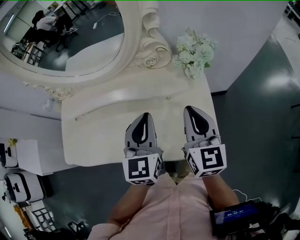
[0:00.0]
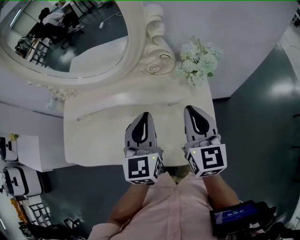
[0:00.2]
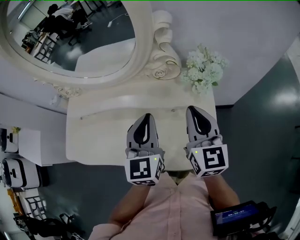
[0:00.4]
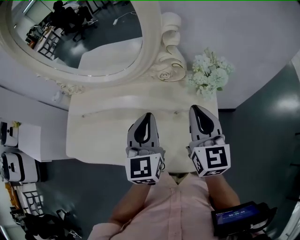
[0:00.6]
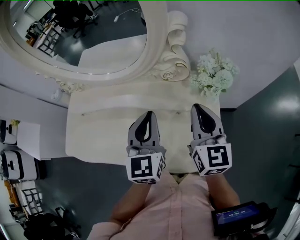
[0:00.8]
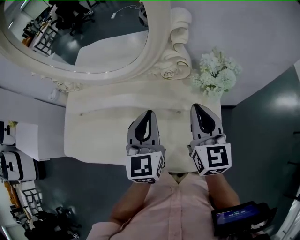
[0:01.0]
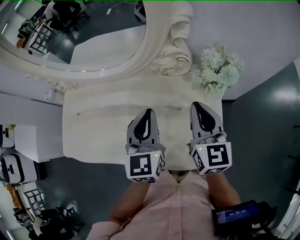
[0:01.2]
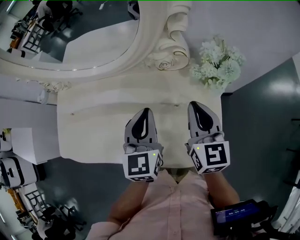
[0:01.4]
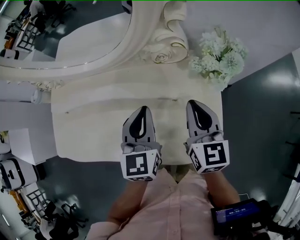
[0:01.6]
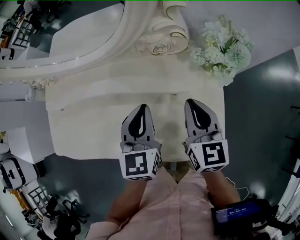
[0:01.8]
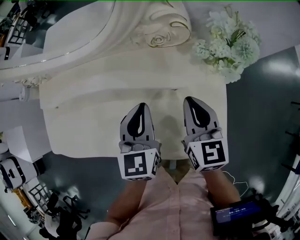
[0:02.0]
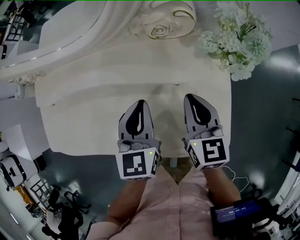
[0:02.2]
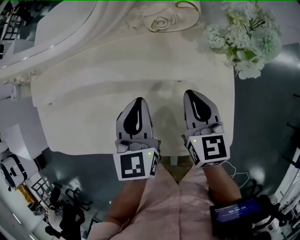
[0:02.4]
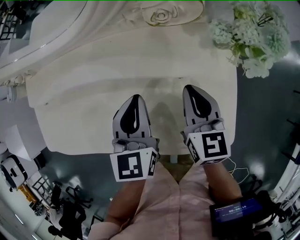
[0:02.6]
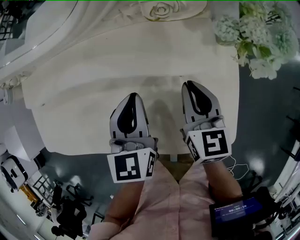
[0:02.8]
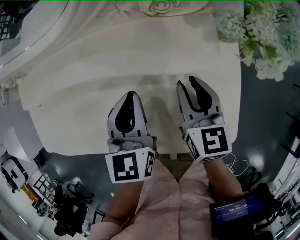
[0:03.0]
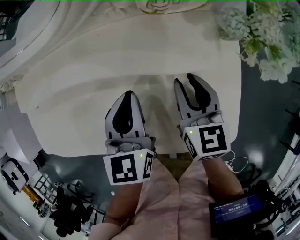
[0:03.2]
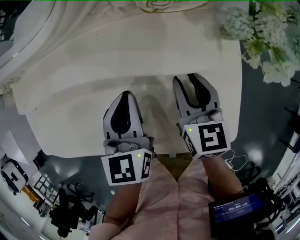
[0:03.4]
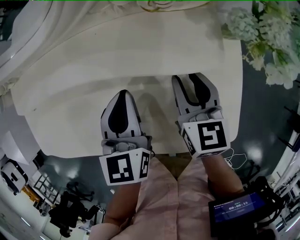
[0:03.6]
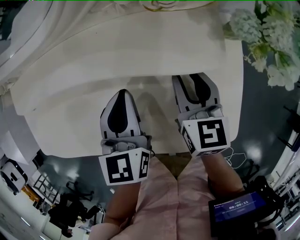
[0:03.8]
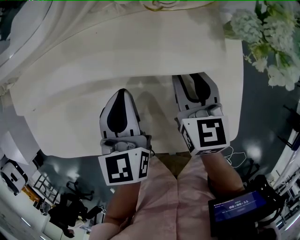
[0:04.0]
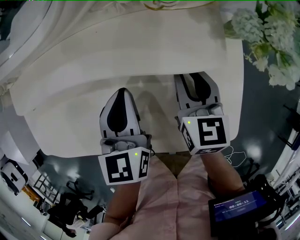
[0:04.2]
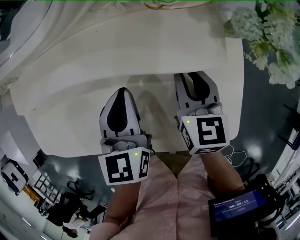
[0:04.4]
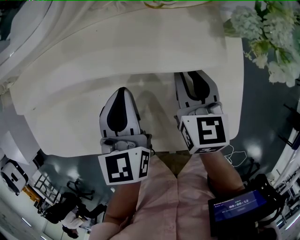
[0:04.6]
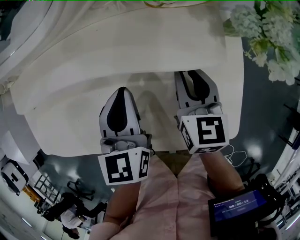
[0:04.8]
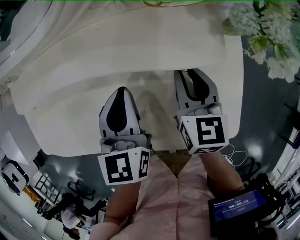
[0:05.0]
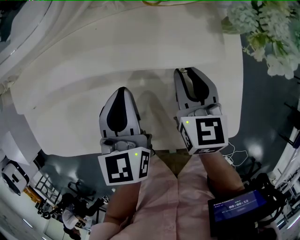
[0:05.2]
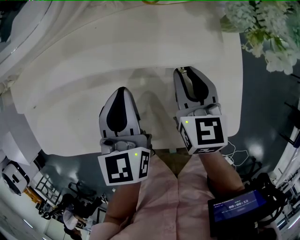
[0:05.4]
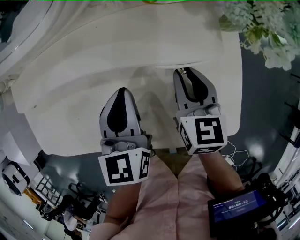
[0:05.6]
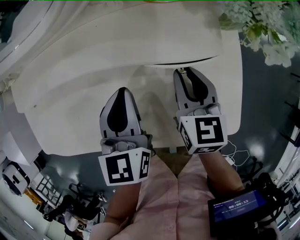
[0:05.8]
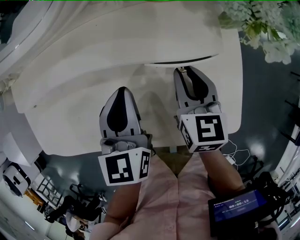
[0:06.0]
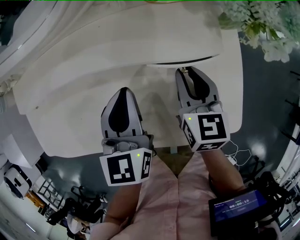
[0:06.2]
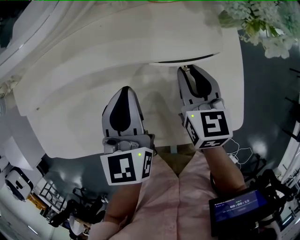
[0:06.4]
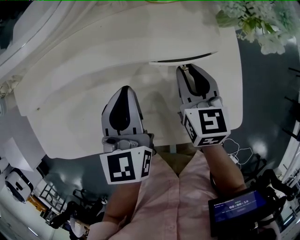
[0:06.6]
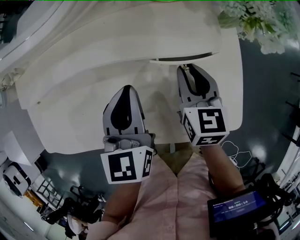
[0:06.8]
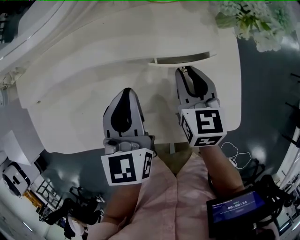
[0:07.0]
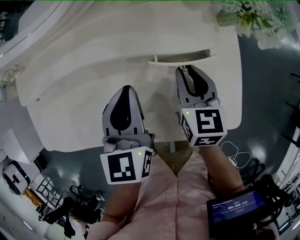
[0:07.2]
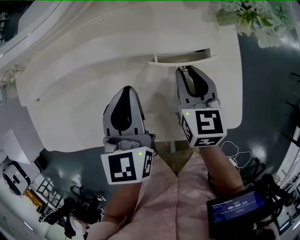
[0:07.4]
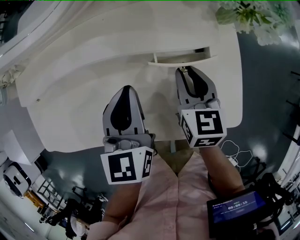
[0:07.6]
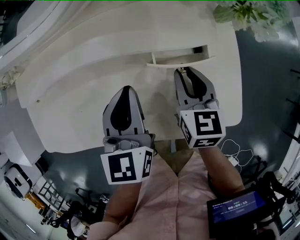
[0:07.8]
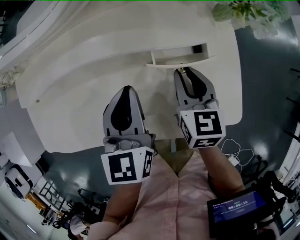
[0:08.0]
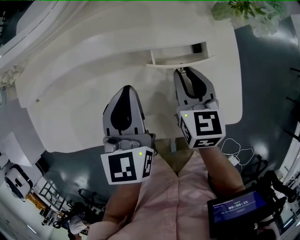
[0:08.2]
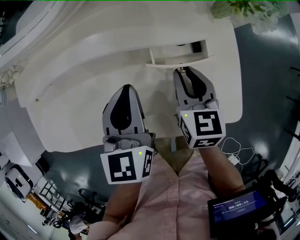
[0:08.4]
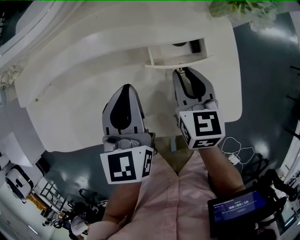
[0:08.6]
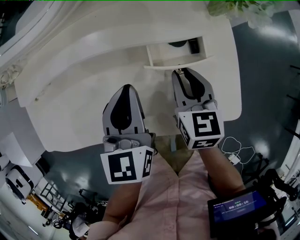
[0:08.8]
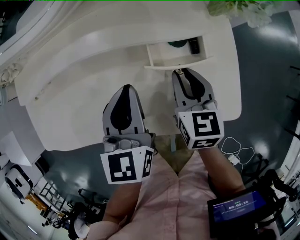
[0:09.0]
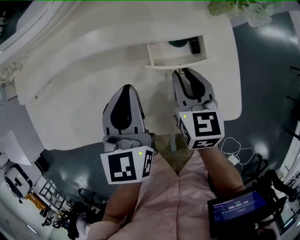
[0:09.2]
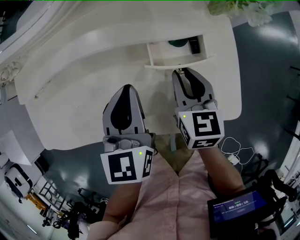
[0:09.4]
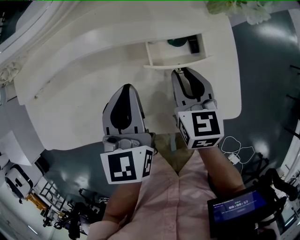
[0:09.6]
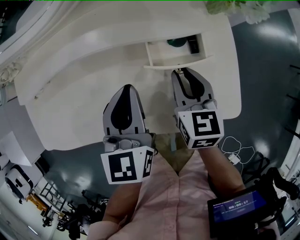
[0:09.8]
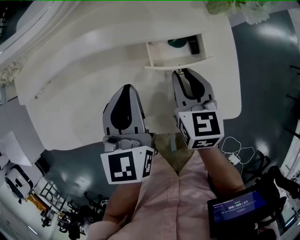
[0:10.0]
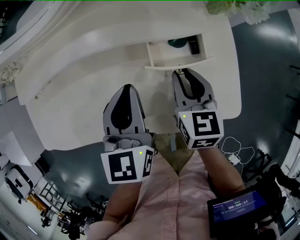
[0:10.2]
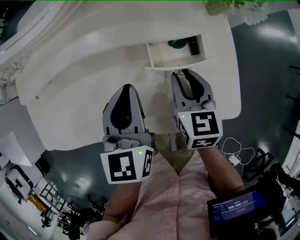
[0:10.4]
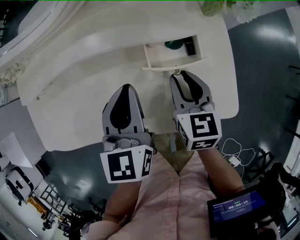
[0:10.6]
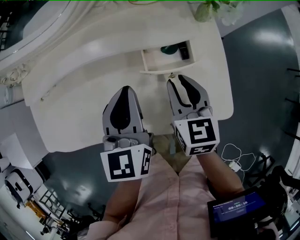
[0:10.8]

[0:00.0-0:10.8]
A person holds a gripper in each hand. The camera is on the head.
0:00.0 to 0:01.6: The grippers both shift forward and downward by some 10 cm.
0:01.6 to 0:03.0: Both grippers move downward, approximately 10 cm. The right gripper opens.
0:03.0 to 0:09.2: There are only small adjustments of the grippers.
0:09.2 to 0:10.8: There are only small adjustments of the grippers.

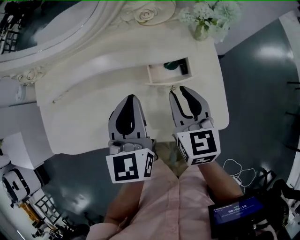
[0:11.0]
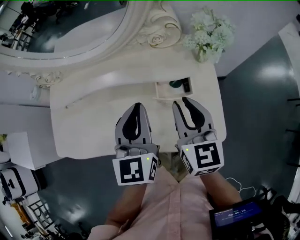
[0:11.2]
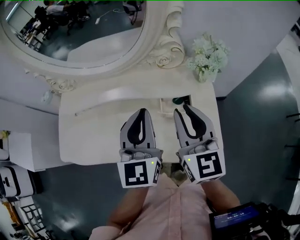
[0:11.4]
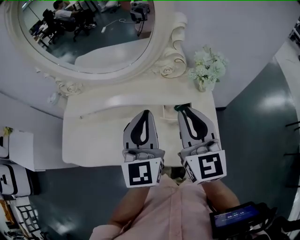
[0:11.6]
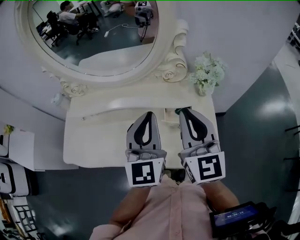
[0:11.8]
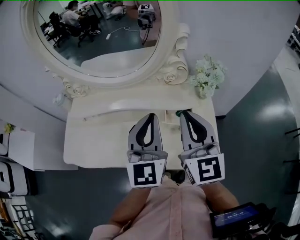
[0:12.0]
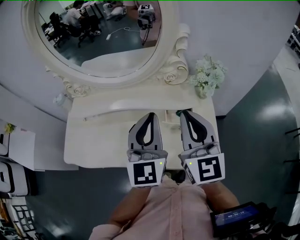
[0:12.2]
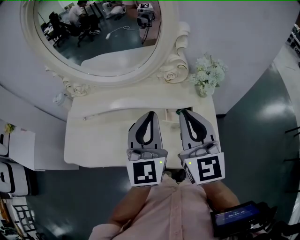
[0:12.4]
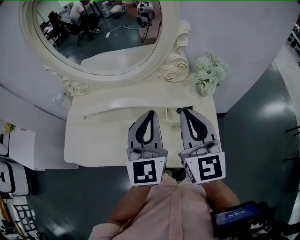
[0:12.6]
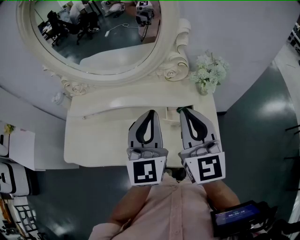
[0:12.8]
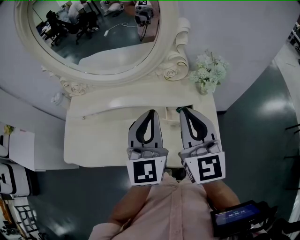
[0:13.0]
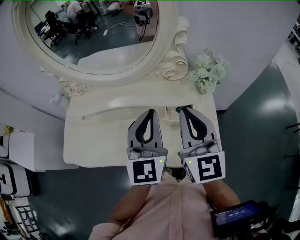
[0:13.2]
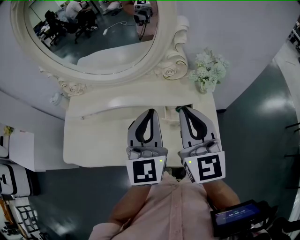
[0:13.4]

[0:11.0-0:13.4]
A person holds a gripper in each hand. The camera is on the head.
0:11.0 to 0:12.2: The grippers both shift upward by about 15 cm. The right gripper changes its angle by approximately 30 degrees; the left gripper turns by roughly 20 degrees.
0:12.2 to 0:13.4: Neither gripper changes place.

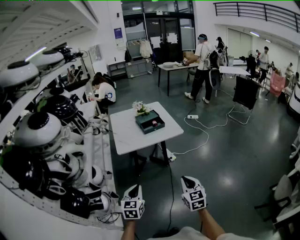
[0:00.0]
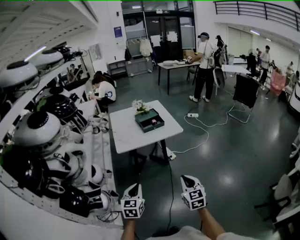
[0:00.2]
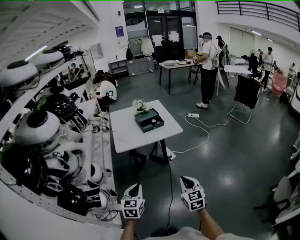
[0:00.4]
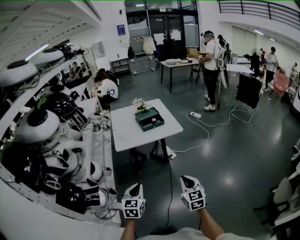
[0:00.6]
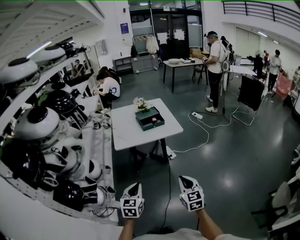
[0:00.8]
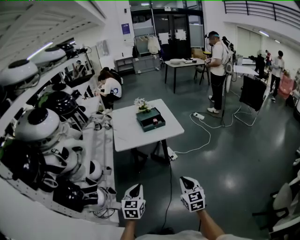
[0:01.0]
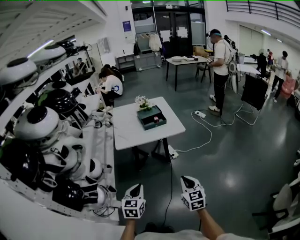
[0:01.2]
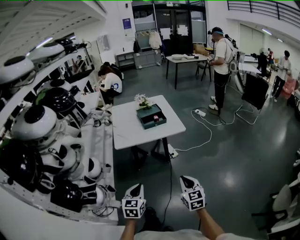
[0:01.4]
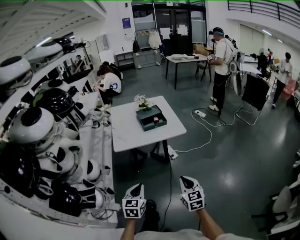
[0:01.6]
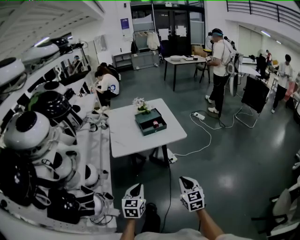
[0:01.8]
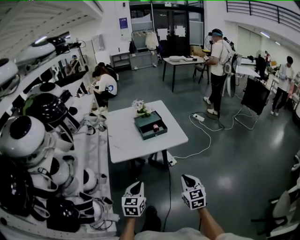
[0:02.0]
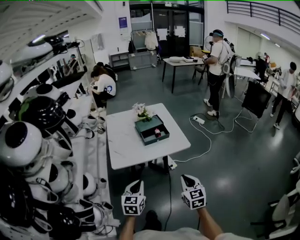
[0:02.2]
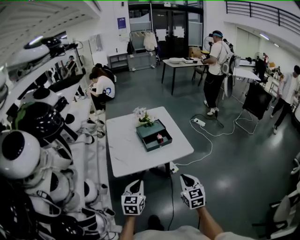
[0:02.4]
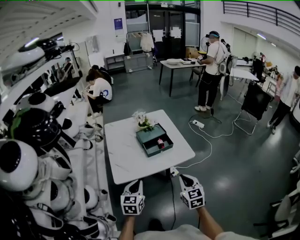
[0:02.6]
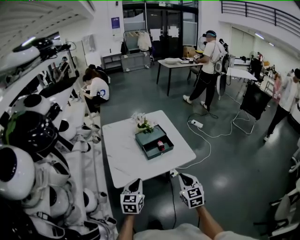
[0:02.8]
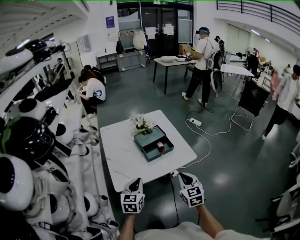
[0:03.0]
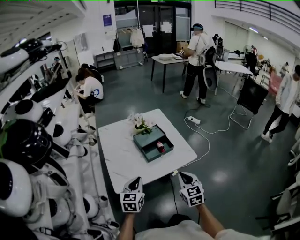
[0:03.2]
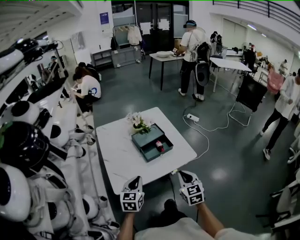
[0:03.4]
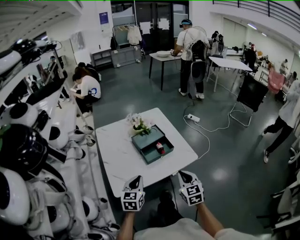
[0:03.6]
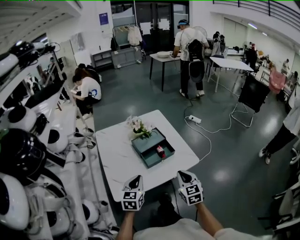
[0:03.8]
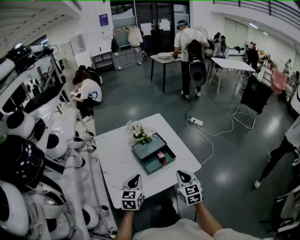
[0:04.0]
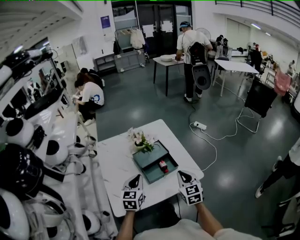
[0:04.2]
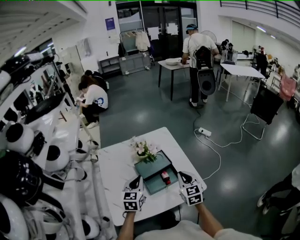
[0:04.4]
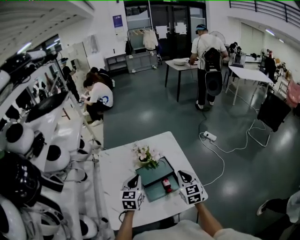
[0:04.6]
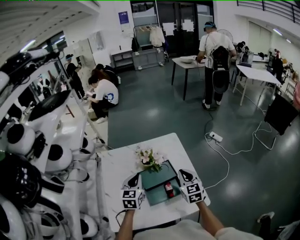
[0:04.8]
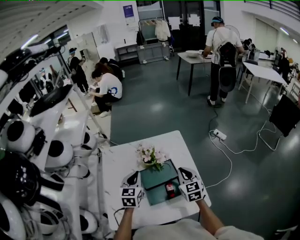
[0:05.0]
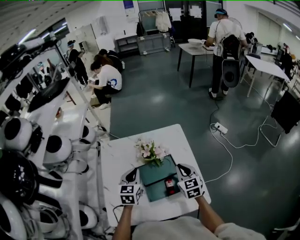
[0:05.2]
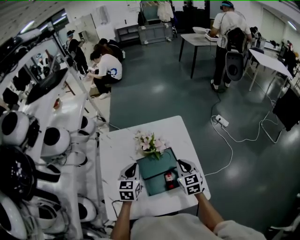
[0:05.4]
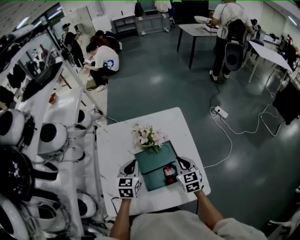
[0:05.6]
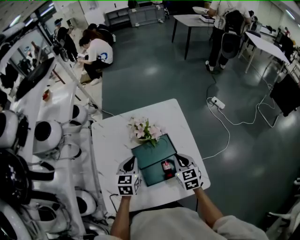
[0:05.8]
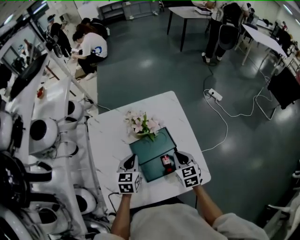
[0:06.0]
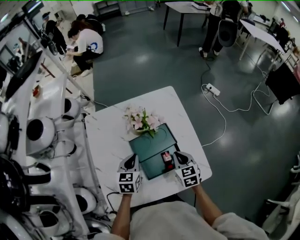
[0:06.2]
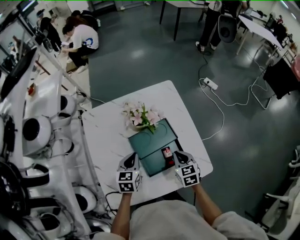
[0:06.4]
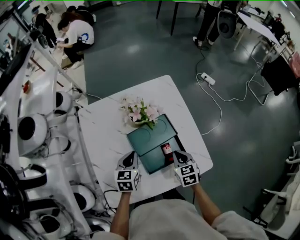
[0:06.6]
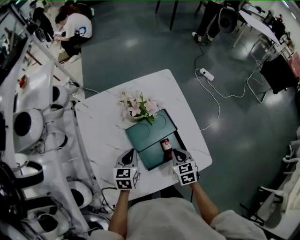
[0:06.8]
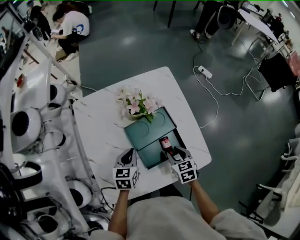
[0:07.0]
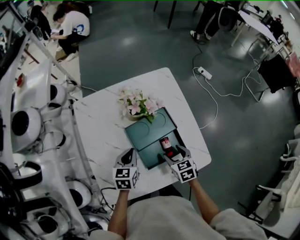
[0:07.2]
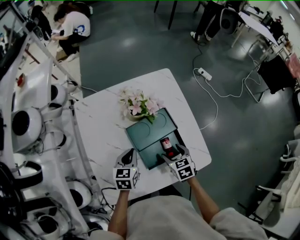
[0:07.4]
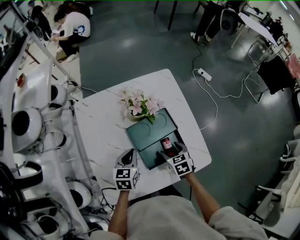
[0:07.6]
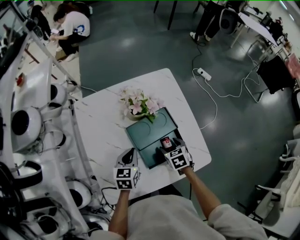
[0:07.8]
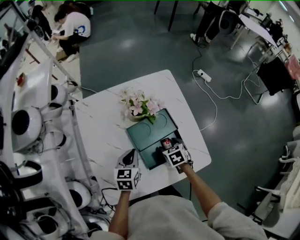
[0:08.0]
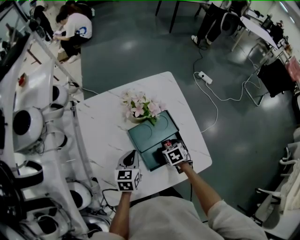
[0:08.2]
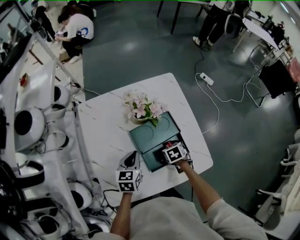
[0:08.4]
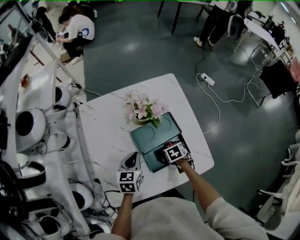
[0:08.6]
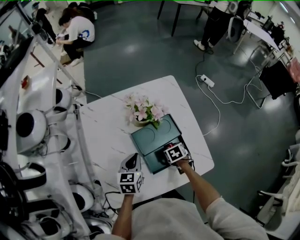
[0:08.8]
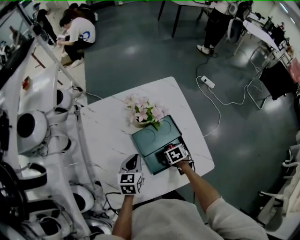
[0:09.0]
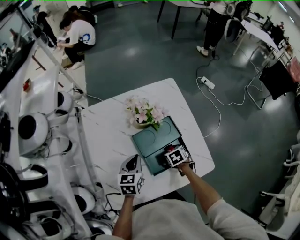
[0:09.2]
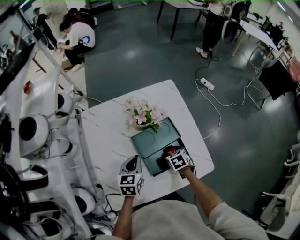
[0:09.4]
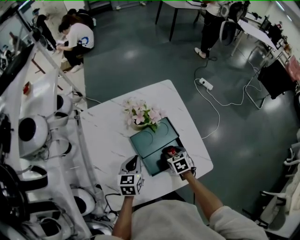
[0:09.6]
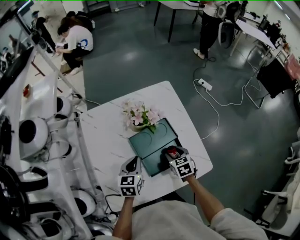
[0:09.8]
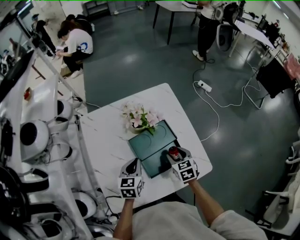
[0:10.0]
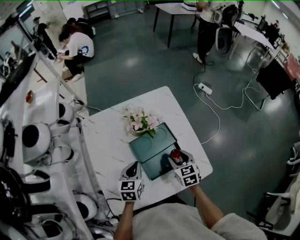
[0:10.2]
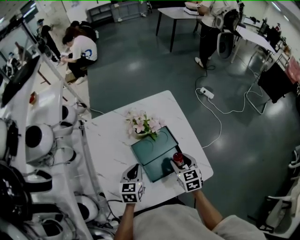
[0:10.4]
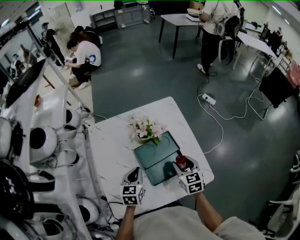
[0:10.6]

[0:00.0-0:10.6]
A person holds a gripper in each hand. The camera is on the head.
0:00.0 to 0:01.6: The right gripper heads forward, covering approximately 5 cm; the left gripper travels to the right and forward by some 10 cm.
0:01.6 to 0:03.0: Both grippers move forward, roughly 35 cm.
0:03.0 to 0:04.6: The two grippers go approximately 35 cm forward.
0:04.6 to 0:06.0: Both grippers travel together downward and forward, approximately 10 cm.
0:06.0 to 0:07.6: The left gripper heads downward, covering roughly 5 cm. Meanwhile the right gripper heads downward, covering roughly 10 cm, swivels some 20 degrees, and opens.
0:07.6 to 0:09.0: The right gripper goes approximately 5 cm downward, and turns by about 20 degrees.
0:09.0 to 0:10.6: The right gripper goes about 20 cm upward, and points its fingers about 40 degrees further upward.
